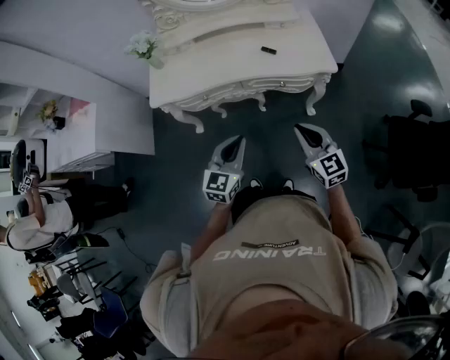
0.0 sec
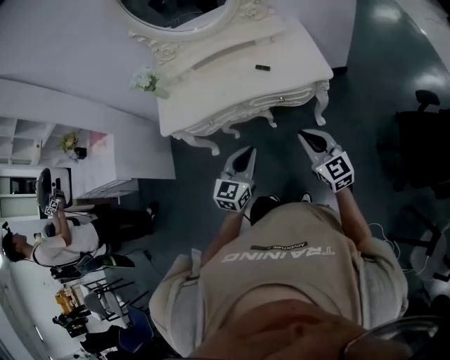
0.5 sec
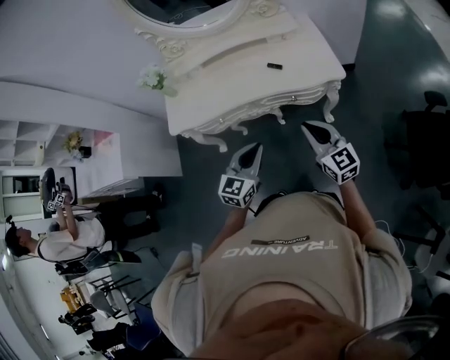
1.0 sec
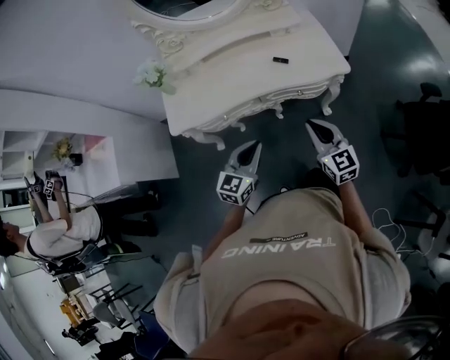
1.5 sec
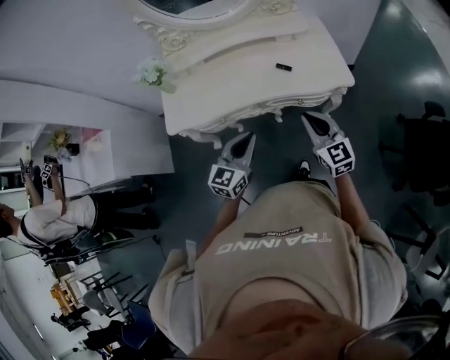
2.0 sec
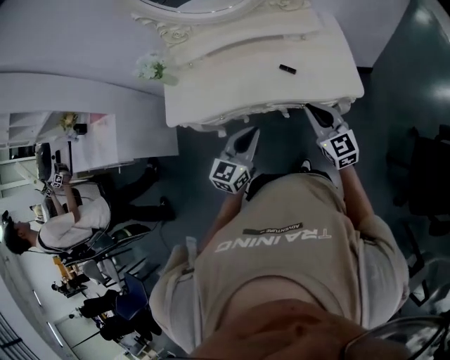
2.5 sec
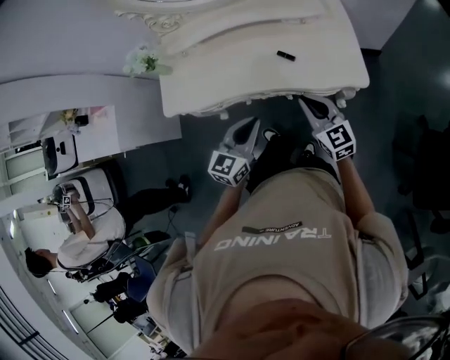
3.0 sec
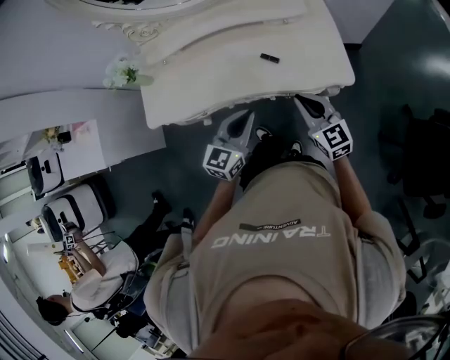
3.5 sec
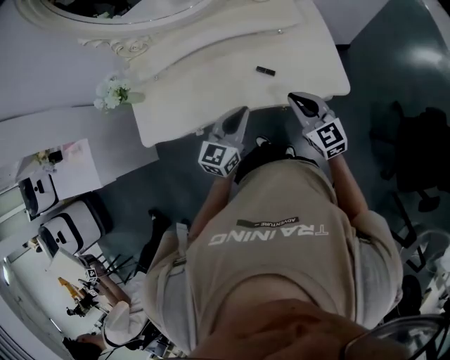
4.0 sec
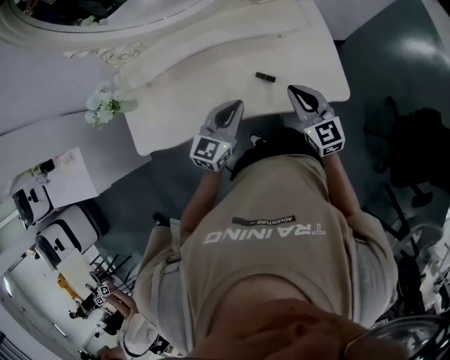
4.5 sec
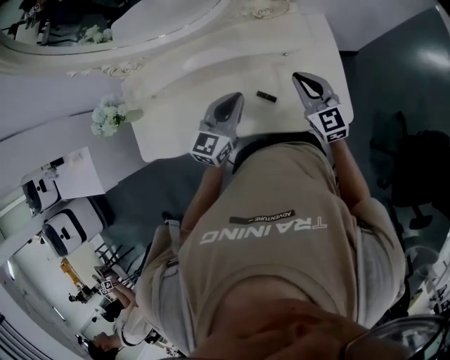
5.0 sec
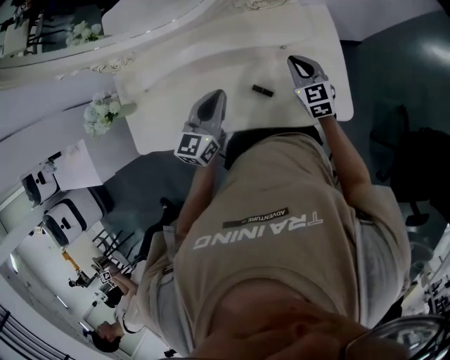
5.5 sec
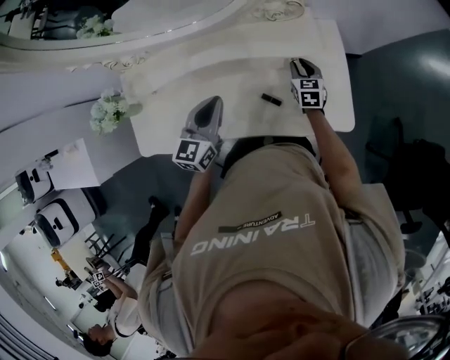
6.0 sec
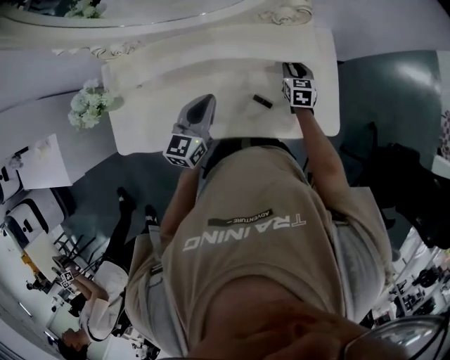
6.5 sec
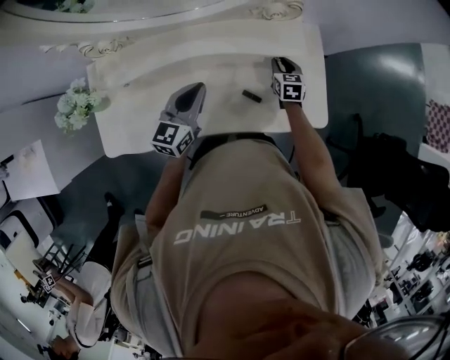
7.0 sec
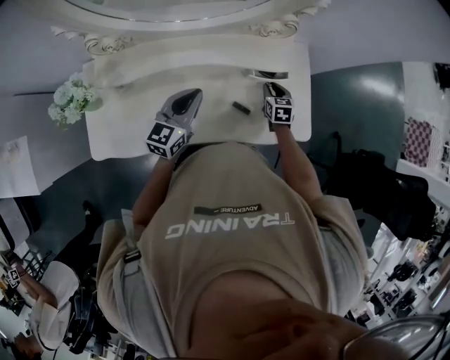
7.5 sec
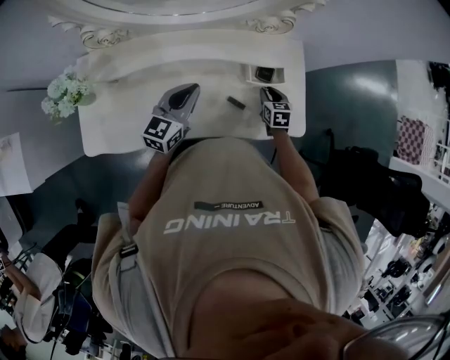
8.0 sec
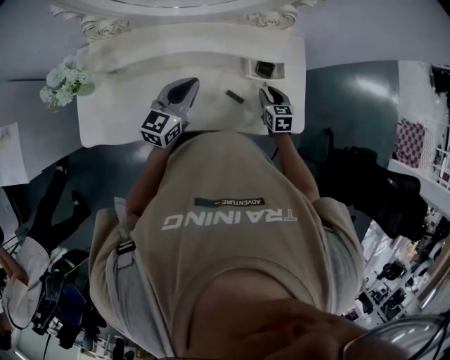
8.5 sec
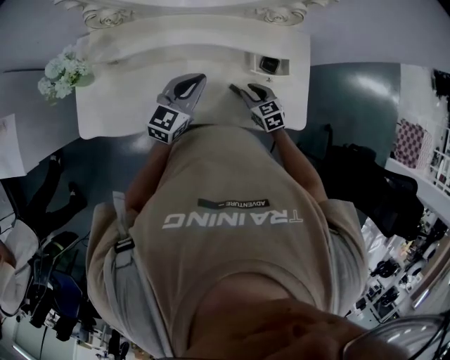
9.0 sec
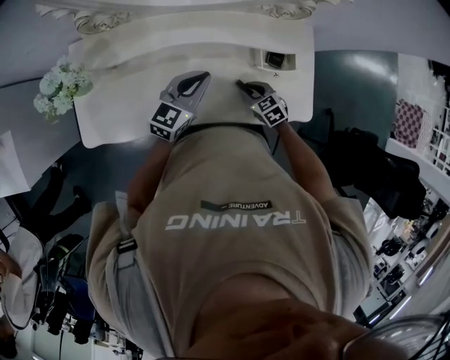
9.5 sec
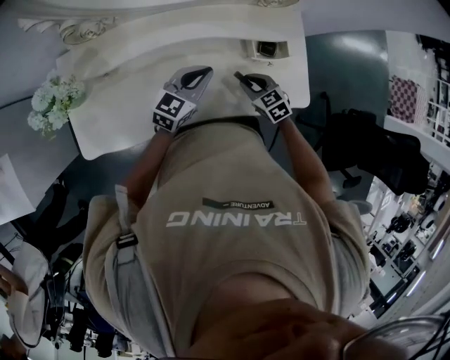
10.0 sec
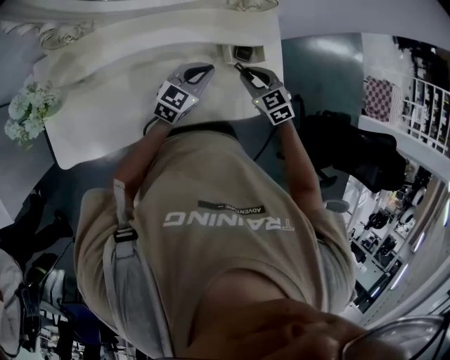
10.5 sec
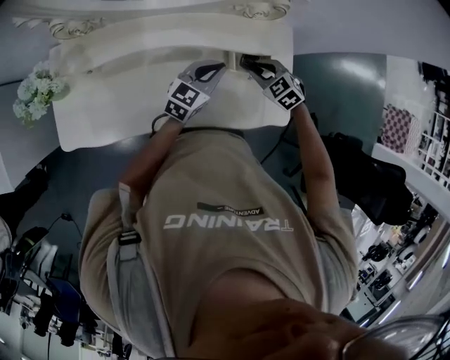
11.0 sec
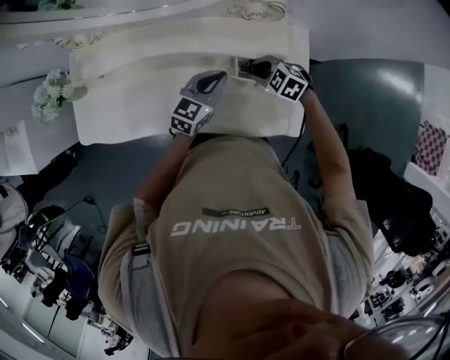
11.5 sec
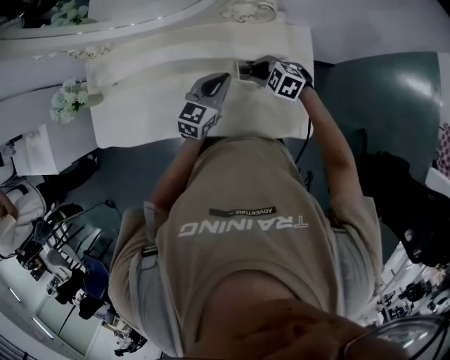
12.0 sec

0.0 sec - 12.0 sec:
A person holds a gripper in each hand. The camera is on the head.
0.0 sec - 2.0 sec: The two grippers go about 15 cm forward.
2.0 sec - 4.0 sec: The left gripper heads forward and to the right, covering about 25 cm. Meanwhile the right gripper travels forward by about 20 cm.
4.0 sec - 6.0 sec: The left gripper goes approximately 20 cm forward, while the right gripper shifts approximately 35 cm forward and downward, changes its angle by some 30 degrees, and opens up.
6.0 sec - 8.0 sec: The right gripper heads backward, covering about 10 cm.
8.0 sec - 10.0 sec: The right gripper heads to the left and backward, covering some 15 cm, and swivels approximately 30 degrees, while the left gripper heads downward, covering roughly 5 cm.
10.0 sec - 12.0 sec: The right gripper goes upward and returns, some 10 cm each way, and changes its angle by some 40 degrees; the left gripper shifts by roughly 20 cm.

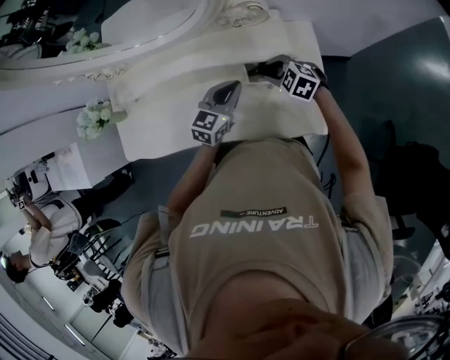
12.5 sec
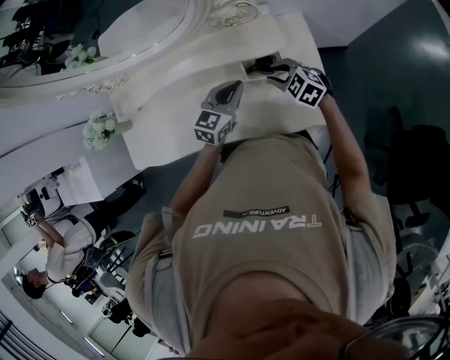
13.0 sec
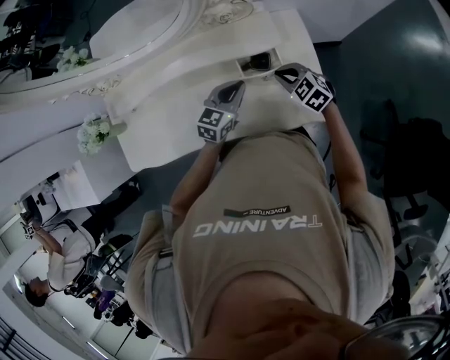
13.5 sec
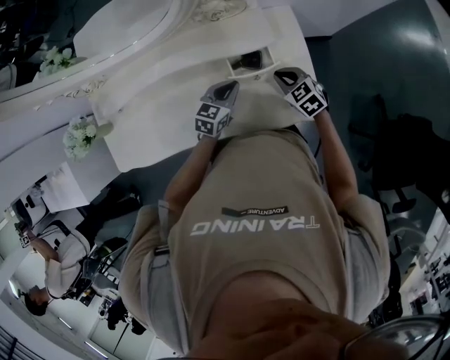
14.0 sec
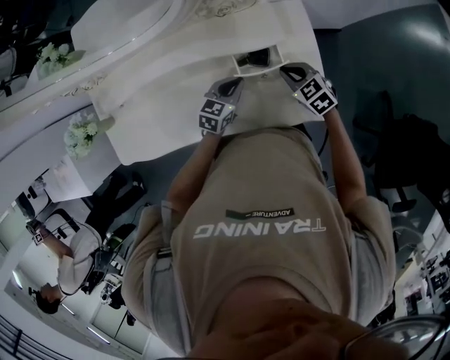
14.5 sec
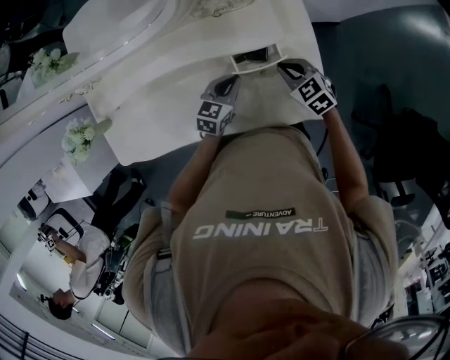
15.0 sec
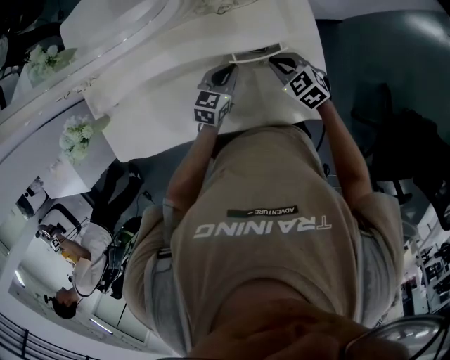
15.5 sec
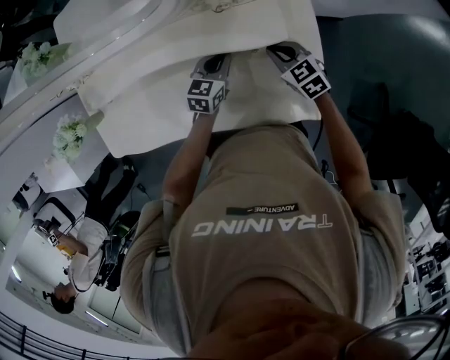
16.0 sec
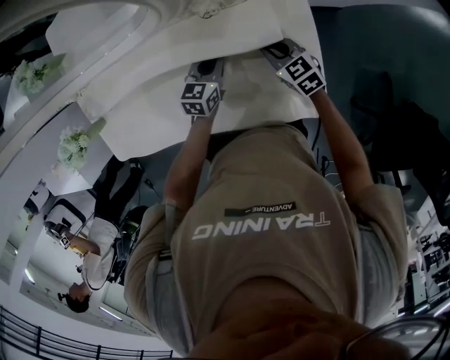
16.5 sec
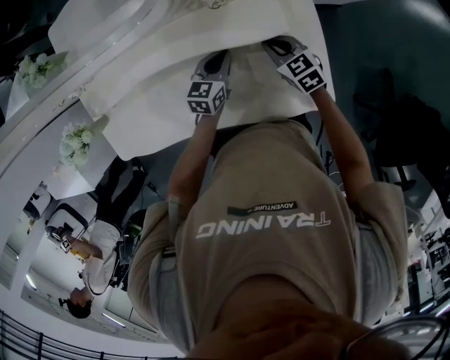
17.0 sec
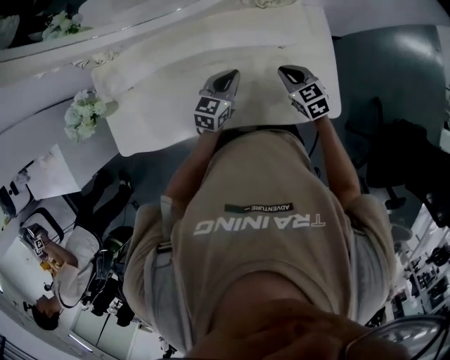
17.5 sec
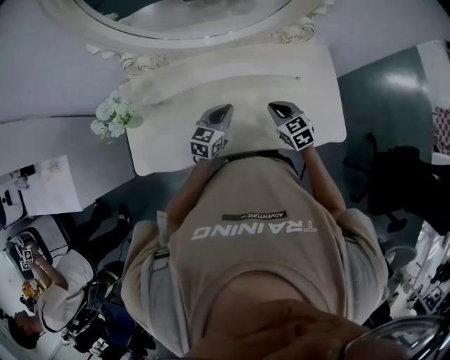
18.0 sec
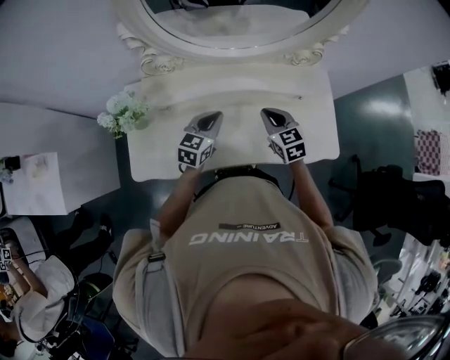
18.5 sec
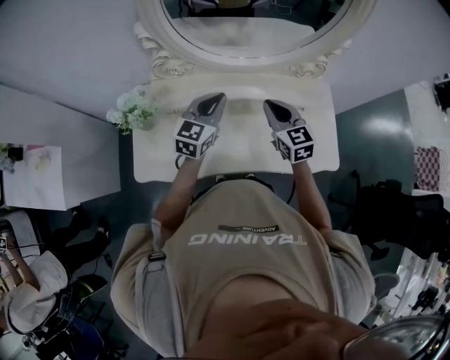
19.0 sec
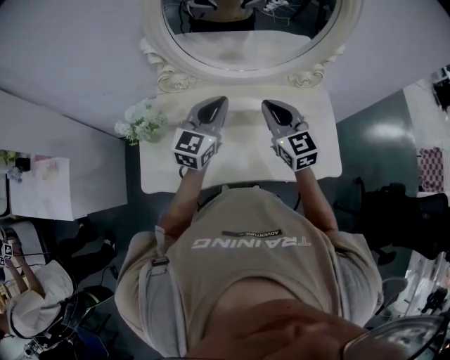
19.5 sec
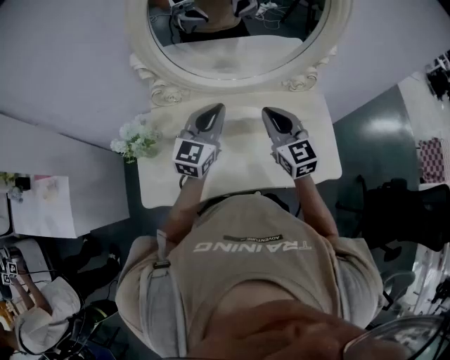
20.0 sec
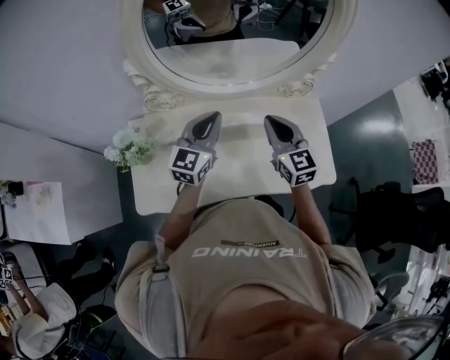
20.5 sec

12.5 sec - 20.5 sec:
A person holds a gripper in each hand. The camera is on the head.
12.5 sec - 14.5 sec: The left gripper goes approximately 10 cm downward. The right gripper shifts approximately 5 cm to the right, turns by roughly 30 degrees, and closes.
14.5 sec - 16.5 sec: The grippers both shift forward by about 10 cm.
16.5 sec - 18.5 sec: The right gripper is displaced to the left, upward and backward by approximately 40 cm. Meanwhile the left gripper moves to the left, backward and upward, some 40 cm.
18.5 sec - 20.5 sec: Both grippers move upward, approximately 15 cm. The right gripper rotates approximately 20 degrees, while the left gripper rotates approximately 20 degrees.

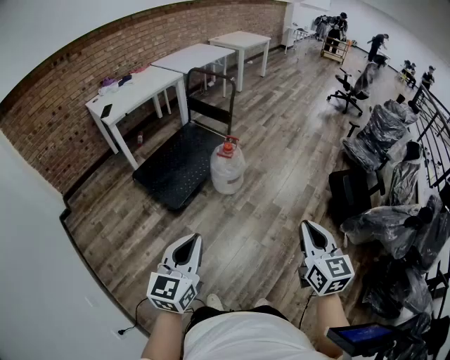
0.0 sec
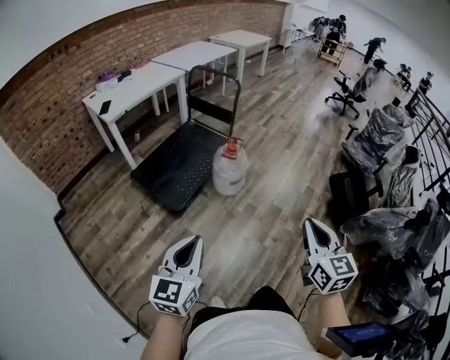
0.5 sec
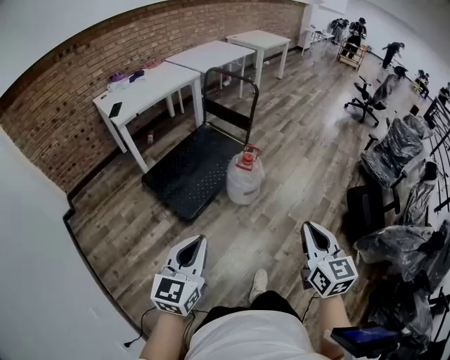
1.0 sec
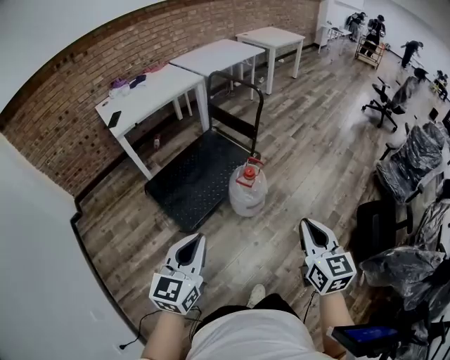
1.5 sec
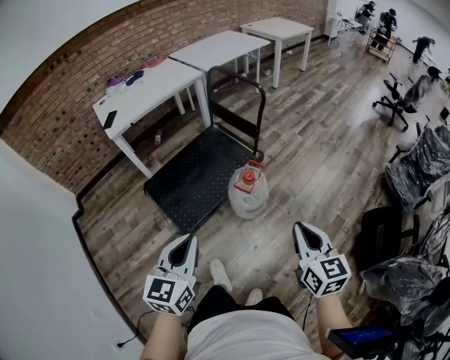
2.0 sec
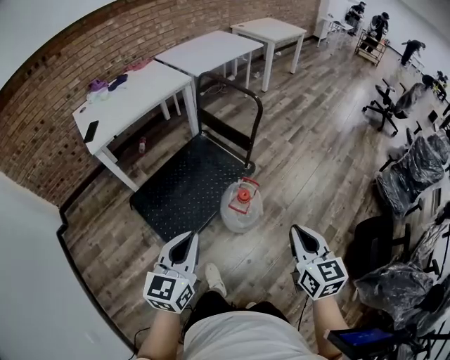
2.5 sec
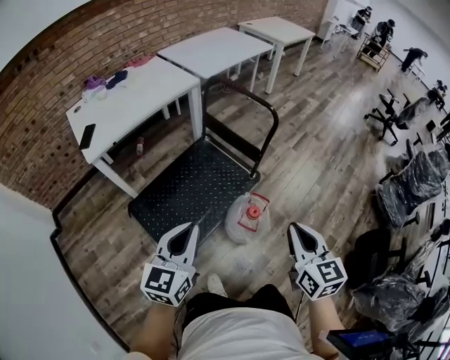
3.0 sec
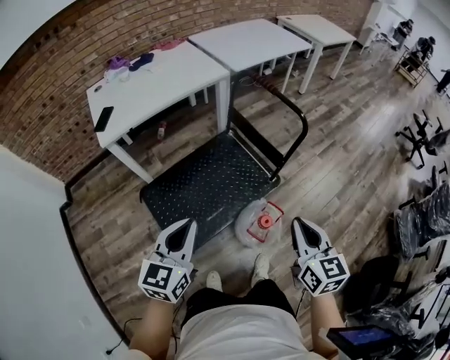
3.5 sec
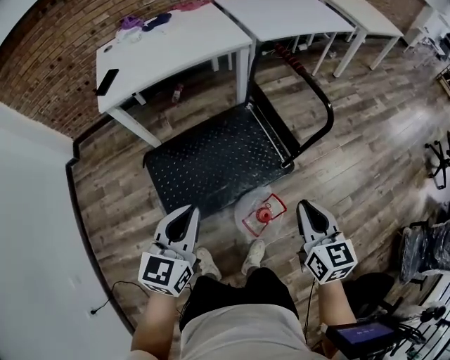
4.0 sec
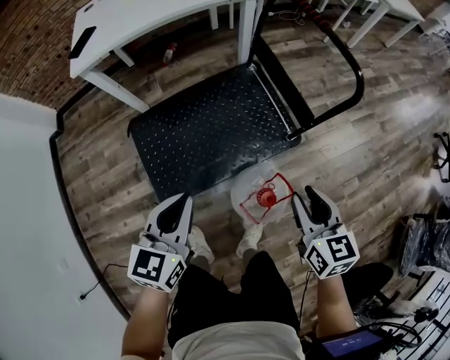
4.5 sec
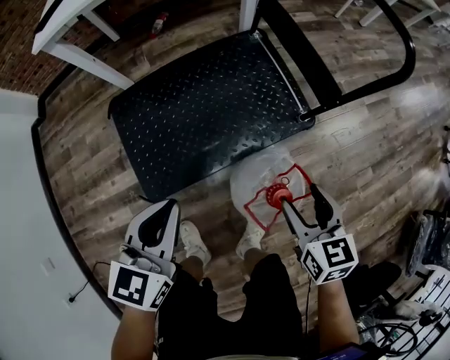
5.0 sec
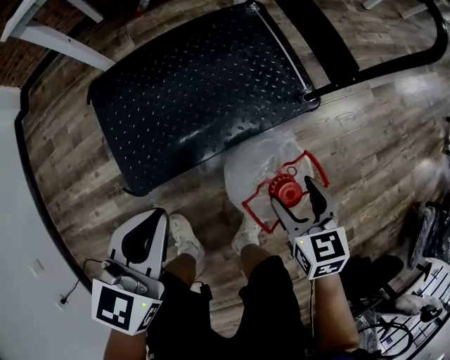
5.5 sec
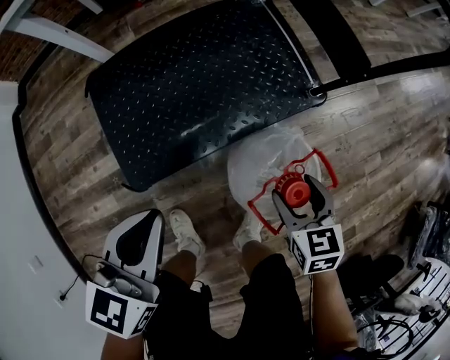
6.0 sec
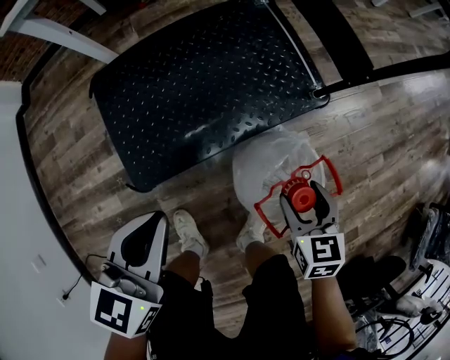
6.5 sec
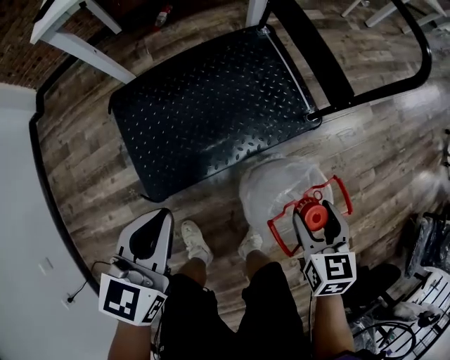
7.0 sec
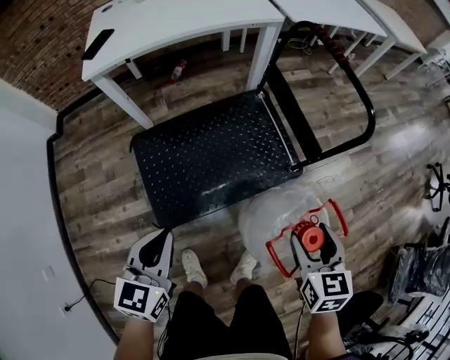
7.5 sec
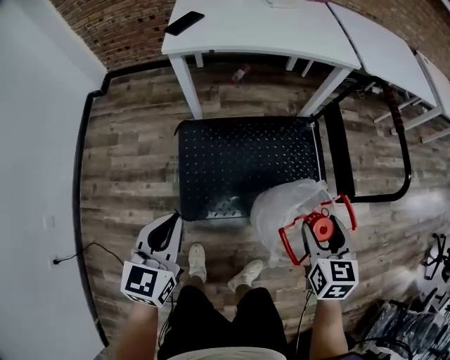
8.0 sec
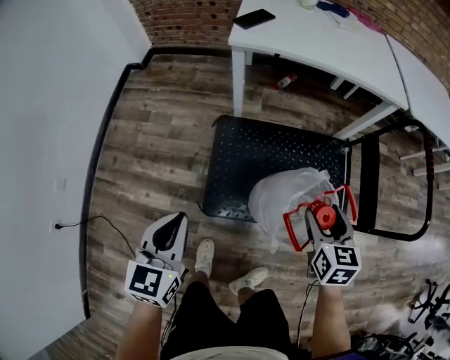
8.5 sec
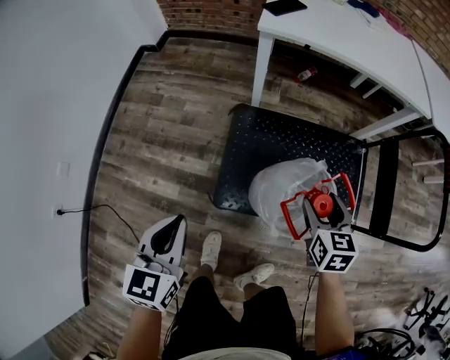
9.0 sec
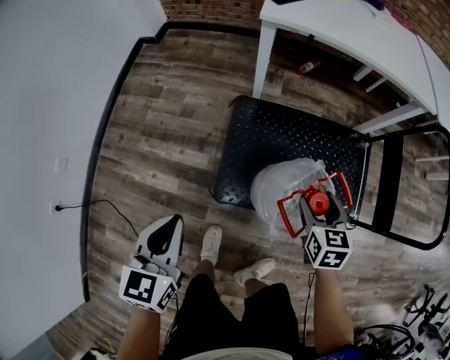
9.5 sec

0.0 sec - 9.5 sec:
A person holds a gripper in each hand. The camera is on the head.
0.0 sec - 2.0 sec: The grippers both shift forward by some 35 cm.
2.0 sec - 4.0 sec: The two grippers go approximately 40 cm forward. The right gripper swivels about 20 degrees.
4.0 sec - 5.5 sec: Both grippers travel together downward, roughly 35 cm. The right gripper turns by some 20 degrees, and opens its fingers.
5.5 sec - 7.5 sec: The right gripper shifts some 25 cm upward, while the left gripper shifts roughly 15 cm upward and to the left.
7.5 sec - 9.5 sec: The right gripper shifts by some 35 cm, and swivels roughly 30 degrees. Meanwhile the left gripper changes place by approximately 25 cm, and turns by approximately 30 degrees.
